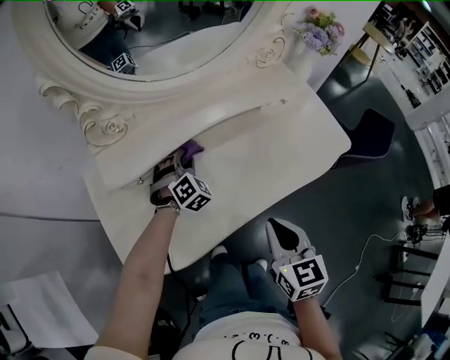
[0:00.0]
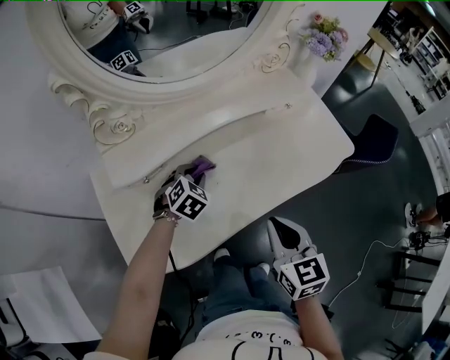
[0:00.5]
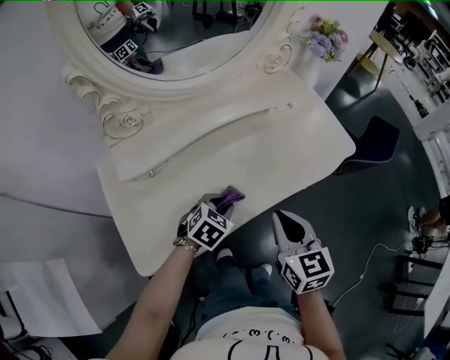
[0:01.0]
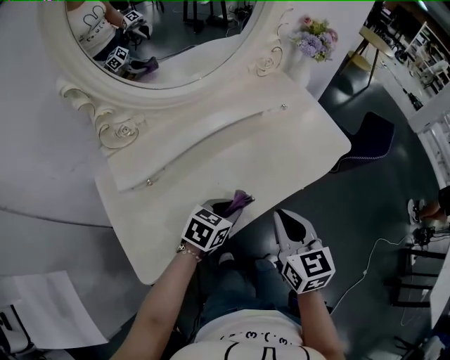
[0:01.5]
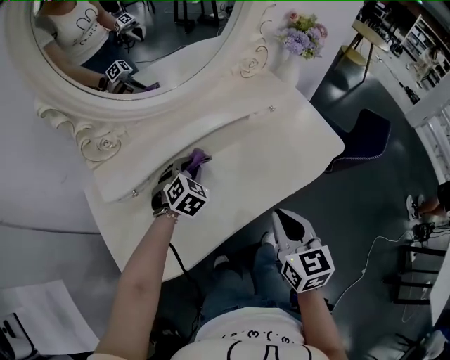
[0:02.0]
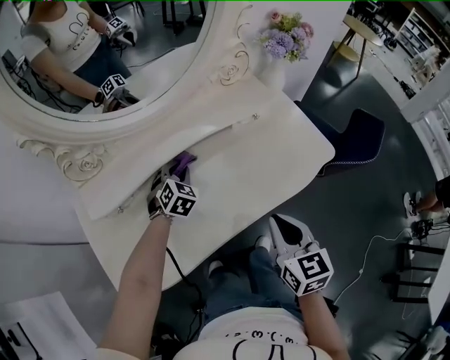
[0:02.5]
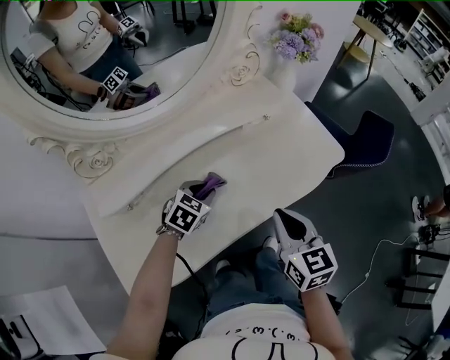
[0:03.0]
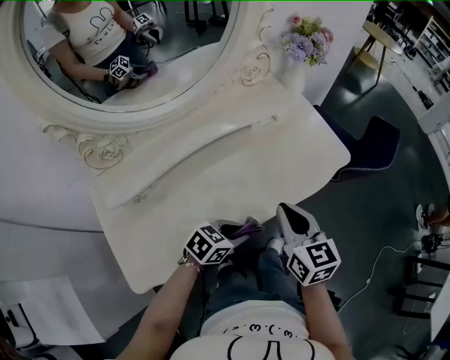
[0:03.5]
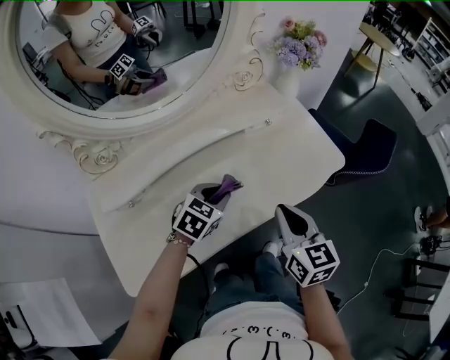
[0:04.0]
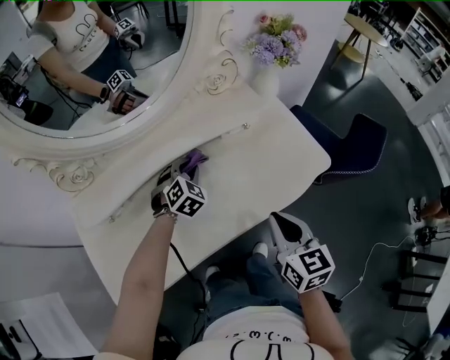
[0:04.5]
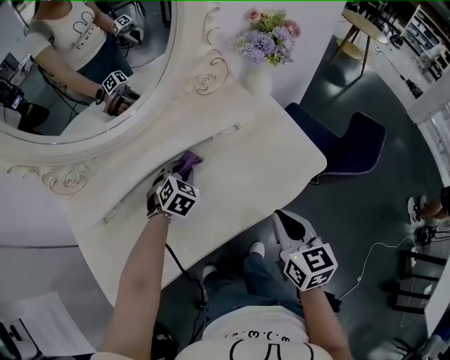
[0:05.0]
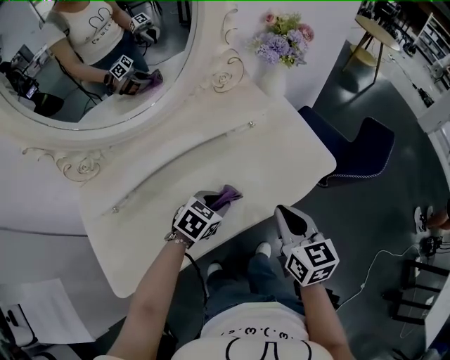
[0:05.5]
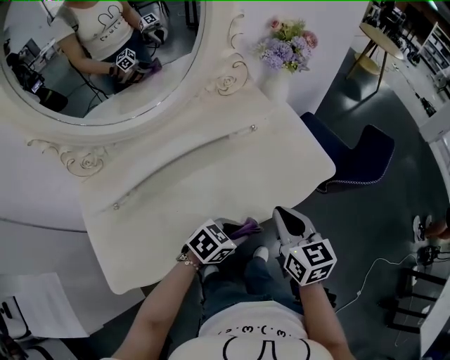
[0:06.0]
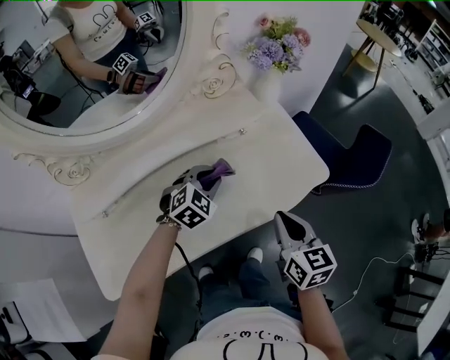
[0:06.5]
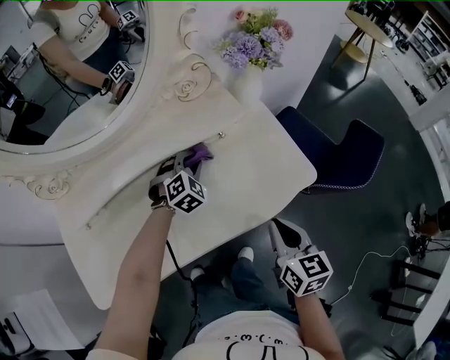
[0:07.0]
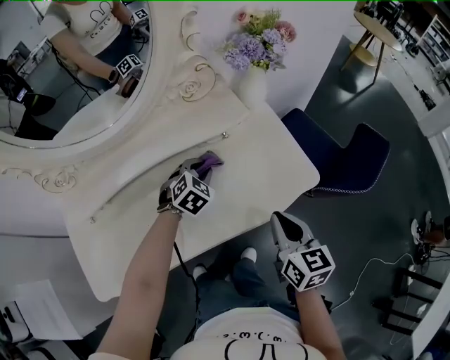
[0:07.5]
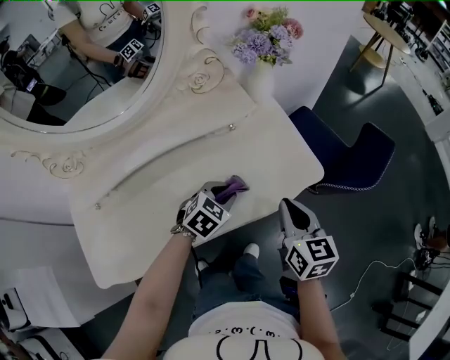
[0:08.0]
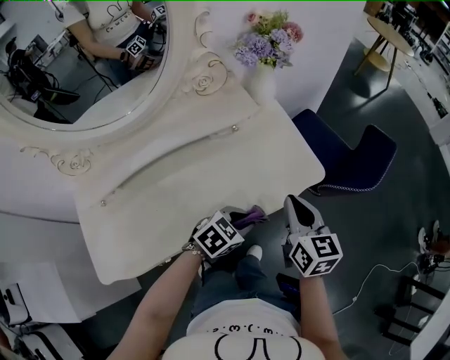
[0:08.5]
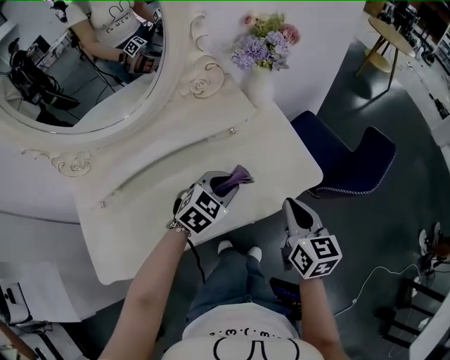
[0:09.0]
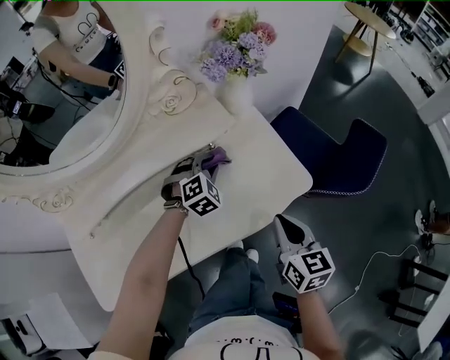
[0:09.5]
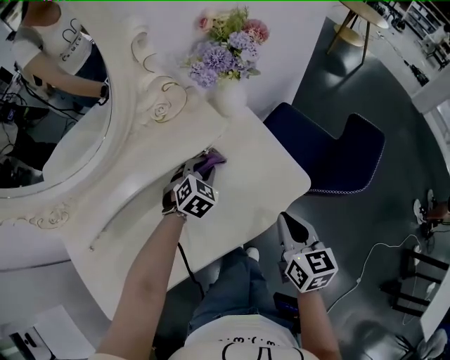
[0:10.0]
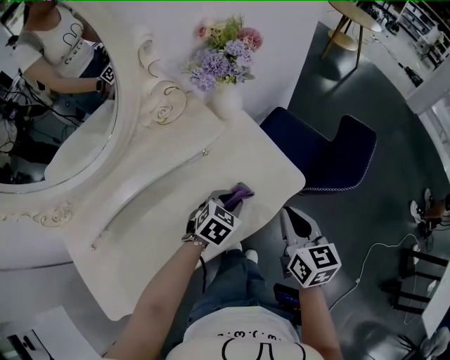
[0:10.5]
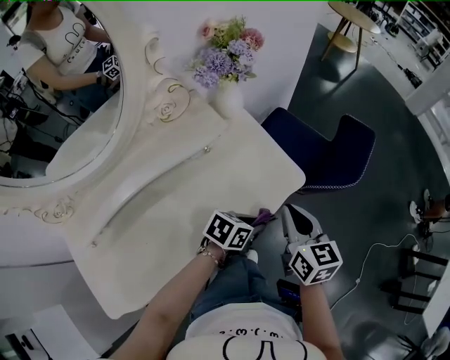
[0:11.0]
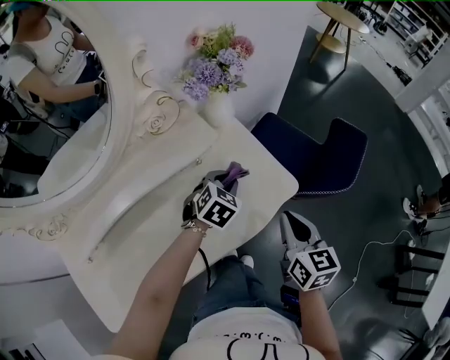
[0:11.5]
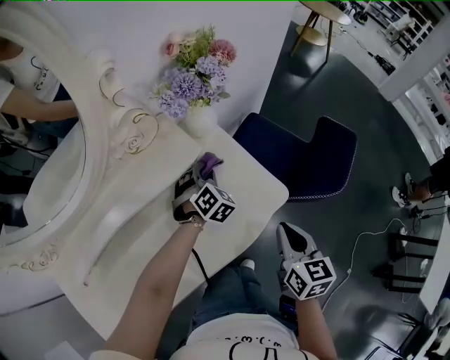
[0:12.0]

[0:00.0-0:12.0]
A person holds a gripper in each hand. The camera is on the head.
0:00.0 to 0:02.0: The right gripper shifts by some 5 cm.
0:02.0 to 0:04.0: The left gripper turns by approximately 30 degrees. Meanwhile the right gripper ends up roughly 10 cm from where it was.
0:04.0 to 0:06.0: The right gripper ends up about 5 cm from where it was. The left gripper shifts by roughly 15 cm, and rotates about 30 degrees.
0:06.0 to 0:08.0: The right gripper moves roughly 10 cm; the left gripper changes its angle by roughly 30 degrees.
0:08.0 to 0:10.0: The left gripper ends up roughly 15 cm from where it was. The right gripper ends up roughly 5 cm from where it was.

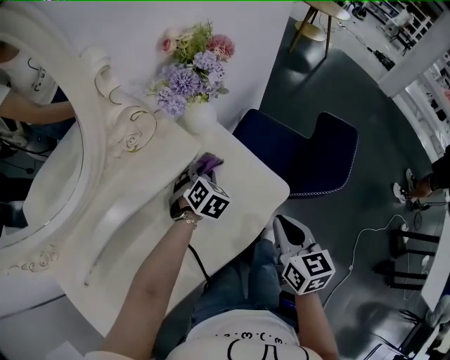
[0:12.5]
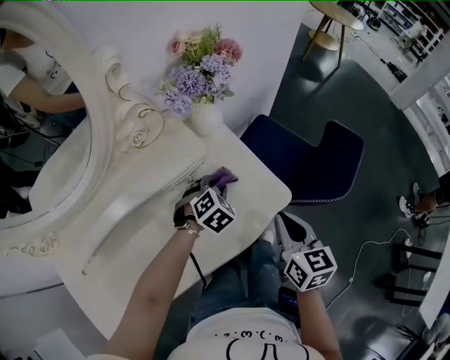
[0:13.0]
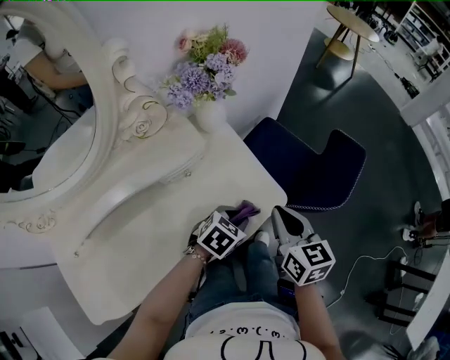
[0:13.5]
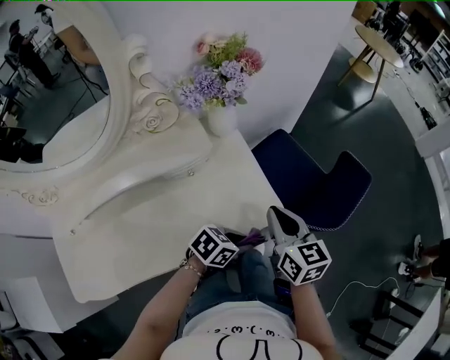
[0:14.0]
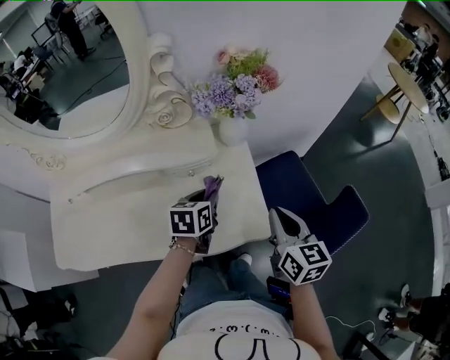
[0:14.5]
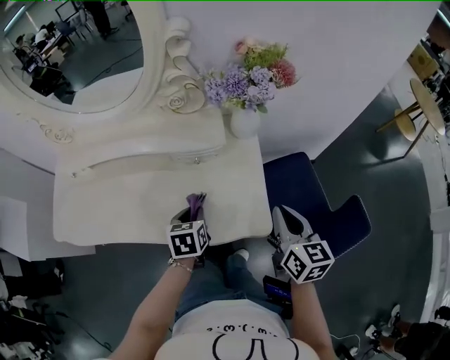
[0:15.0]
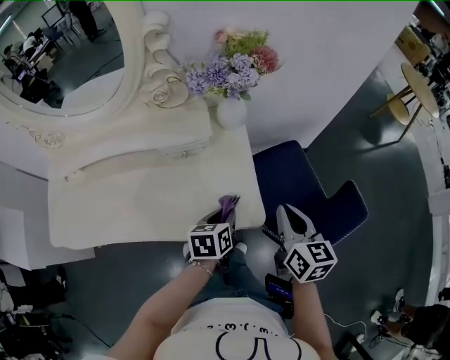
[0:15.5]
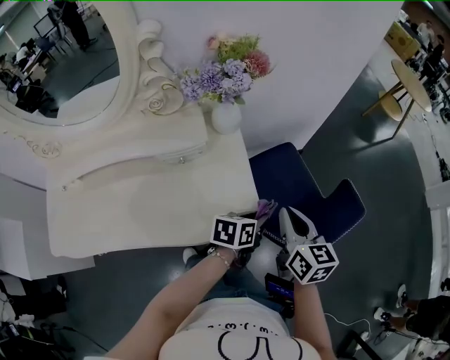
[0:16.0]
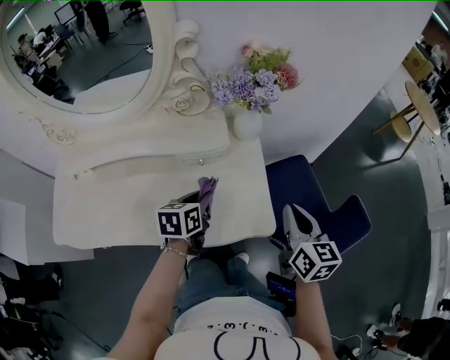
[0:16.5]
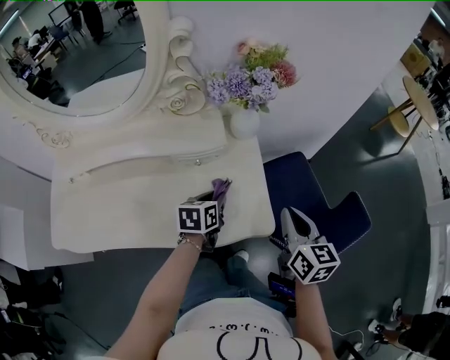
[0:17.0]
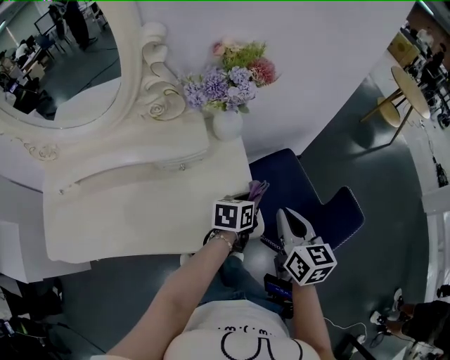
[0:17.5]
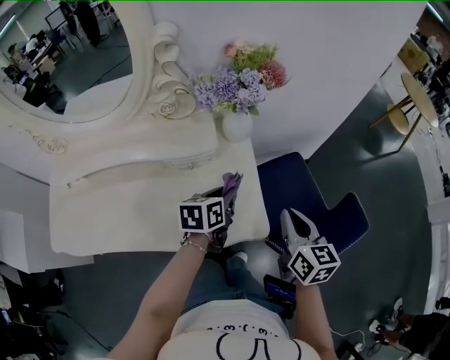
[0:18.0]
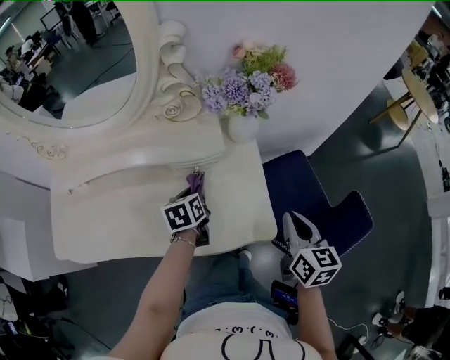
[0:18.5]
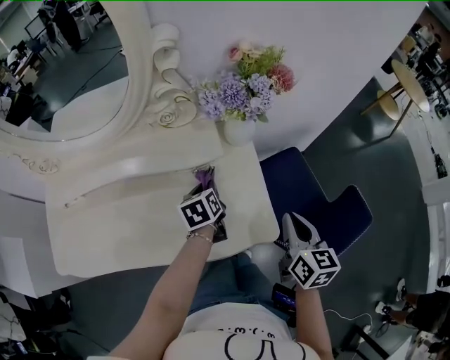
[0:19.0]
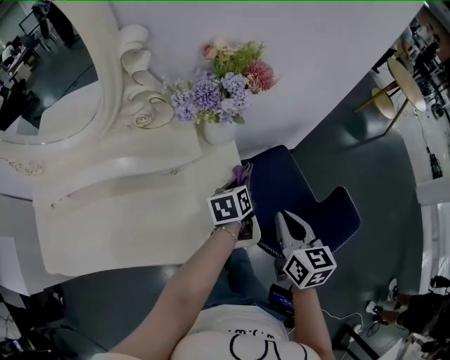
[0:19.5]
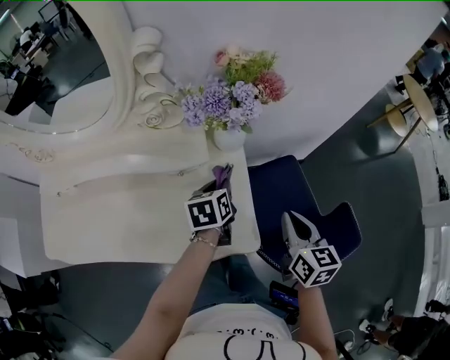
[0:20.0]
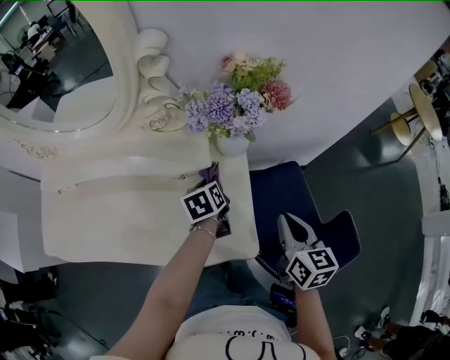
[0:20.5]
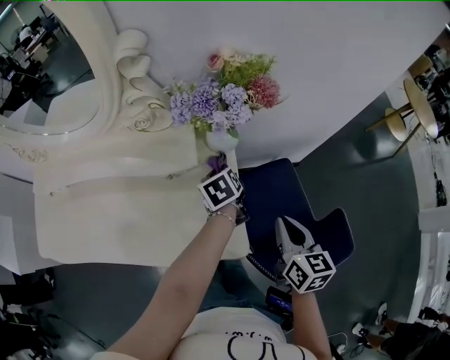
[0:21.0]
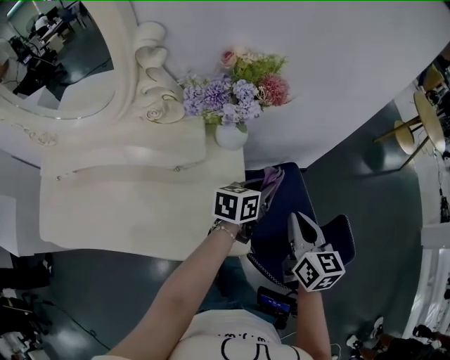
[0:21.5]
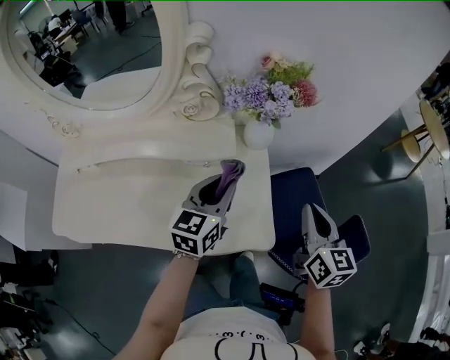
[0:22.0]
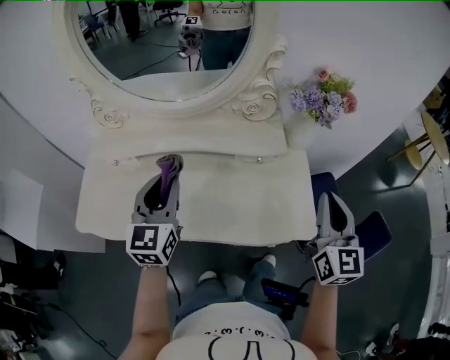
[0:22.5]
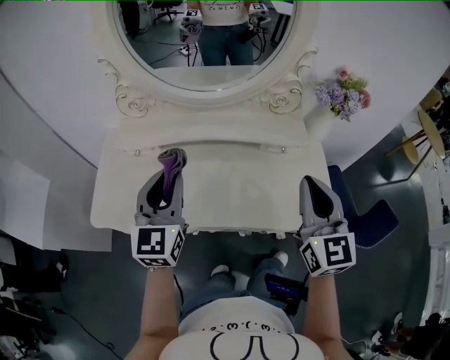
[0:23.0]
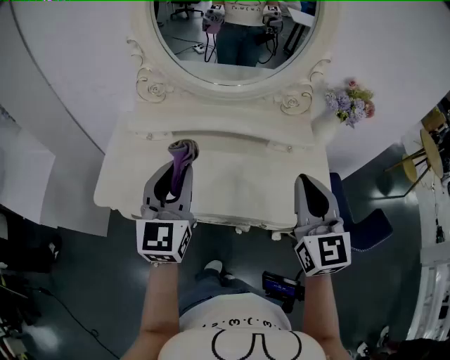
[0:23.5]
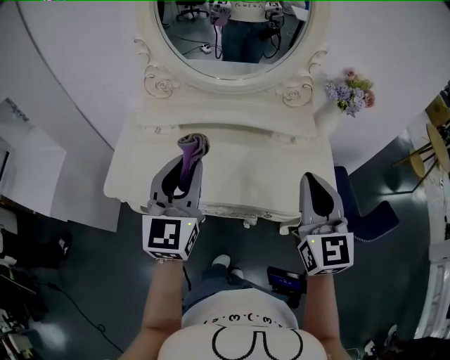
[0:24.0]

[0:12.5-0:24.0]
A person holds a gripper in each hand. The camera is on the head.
0:12.5 to 0:14.5: The left gripper travels upward by approximately 5 cm, and rotates around the line of its fingers by some 70 degrees, counterclockwise from behind; the right gripper moves approximately 15 cm, and rotates approximately 30 degrees.
0:16.5 to 0:18.5: The left gripper moves forward, some 5 cm, and reaches about 20 cm to the right, then returns.
0:18.5 to 0:20.0: The right gripper moves roughly 5 cm. Meanwhile the left gripper heads to the right and forward, covering some 15 cm.
0:20.0 to 0:22.0: The left gripper goes left and right, approximately 20 cm each way, reversing 2 times, and rotates some 30 degrees, while the right gripper goes some 5 cm upward.
0:22.0 to 0:24.0: The left gripper is displaced to the left and backward by roughly 50 cm, and swivels some 30 degrees. The right gripper is displaced to the left by roughly 35 cm, and turns by approximately 30 degrees.

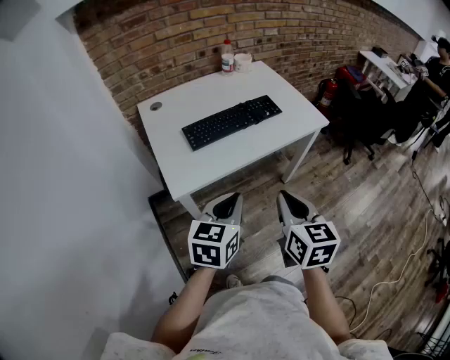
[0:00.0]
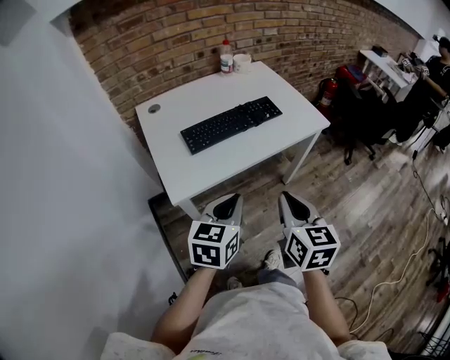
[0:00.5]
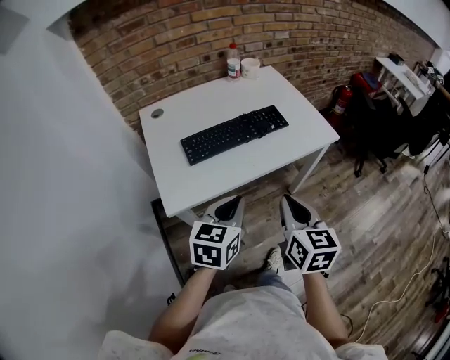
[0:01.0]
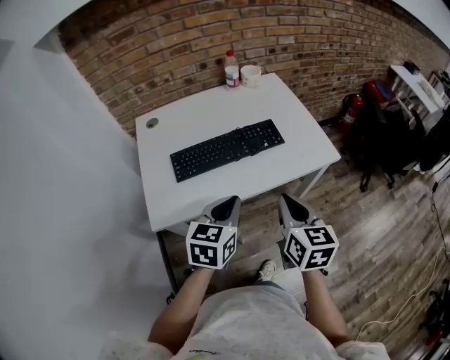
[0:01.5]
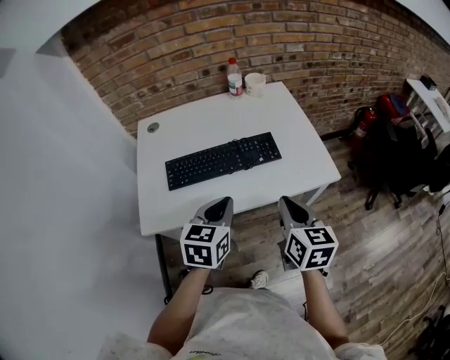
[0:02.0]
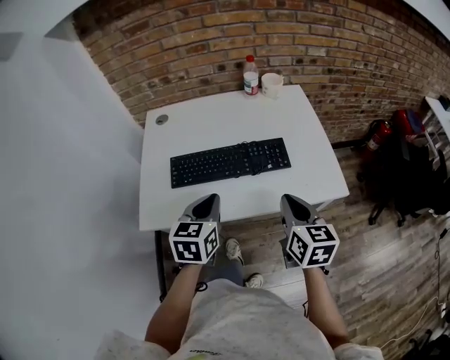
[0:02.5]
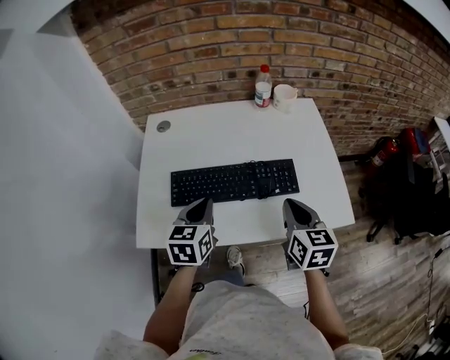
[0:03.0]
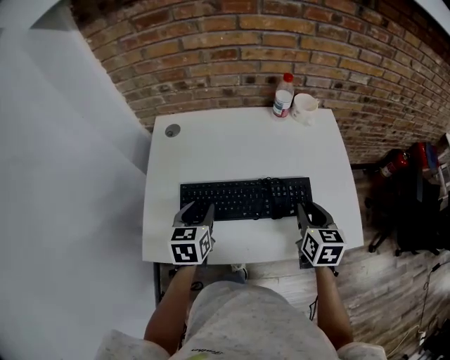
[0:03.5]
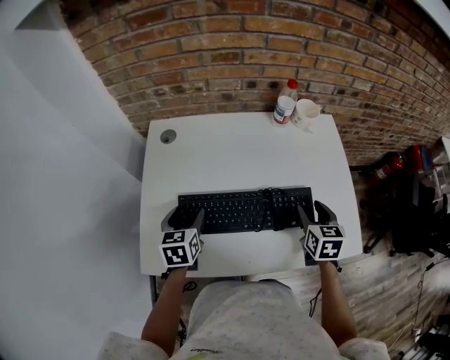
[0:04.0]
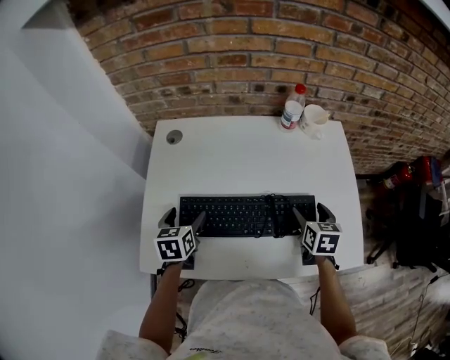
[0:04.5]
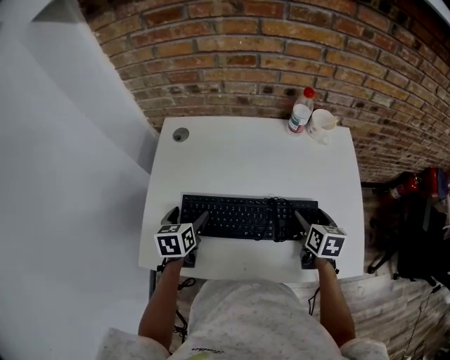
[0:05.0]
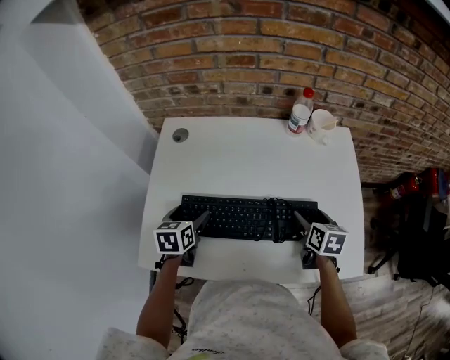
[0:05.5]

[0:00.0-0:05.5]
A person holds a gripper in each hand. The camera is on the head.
0:00.0 to 0:02.0: Both grippers travel together forward and to the right, roughly 25 cm.
0:02.0 to 0:03.5: The right gripper shifts some 25 cm forward; the left gripper shifts approximately 25 cm forward, to the left and downward, changes its angle by approximately 20 degrees, and opens its fingers.
0:03.5 to 0:05.5: The right gripper is displaced forward and downward by roughly 10 cm, and opens its fingers. Meanwhile the left gripper shifts approximately 10 cm downward and to the left, and opens up.
